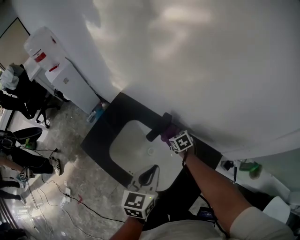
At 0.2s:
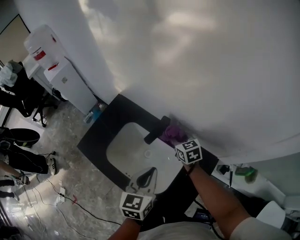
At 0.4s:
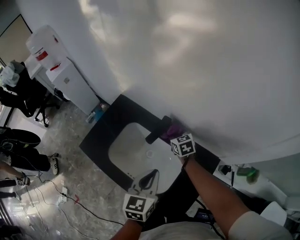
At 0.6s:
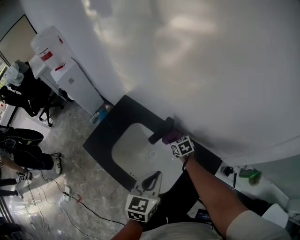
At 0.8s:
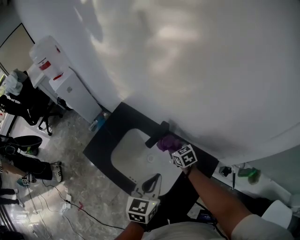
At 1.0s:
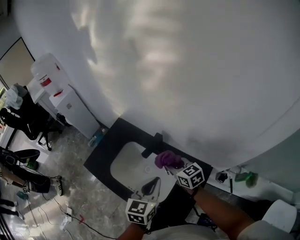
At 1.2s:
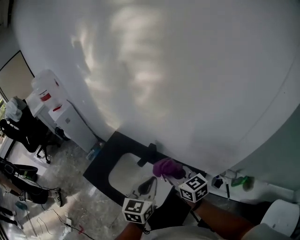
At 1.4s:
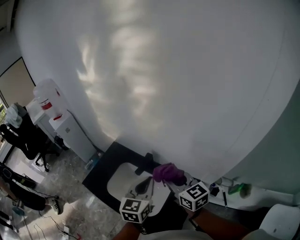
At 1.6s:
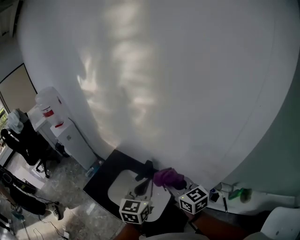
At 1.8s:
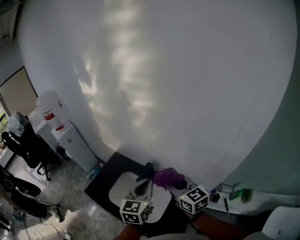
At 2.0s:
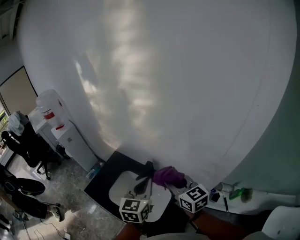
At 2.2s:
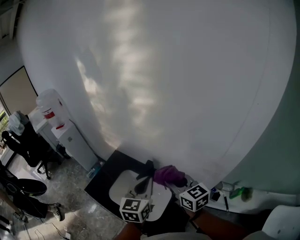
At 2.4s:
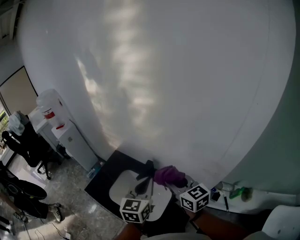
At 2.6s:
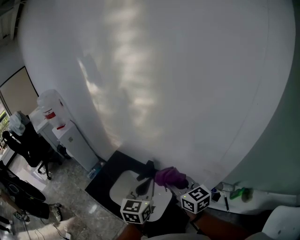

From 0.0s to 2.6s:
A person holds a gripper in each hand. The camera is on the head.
From 0.0s to 1.2s: The left gripper travels upward and to the right by about 10 cm; the right gripper swings up and down, about 30 cm each way, with 2 reversals, and tips its fingers upward by about 40 degrees.
From 1.2s to 2.6s: Both grippers travel together upward, about 10 cm.

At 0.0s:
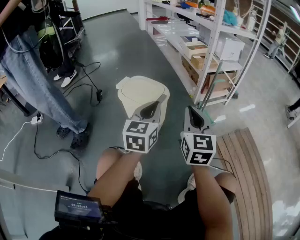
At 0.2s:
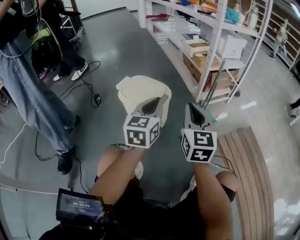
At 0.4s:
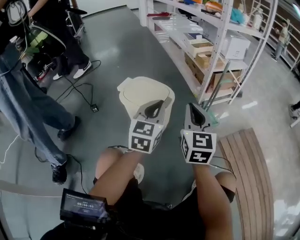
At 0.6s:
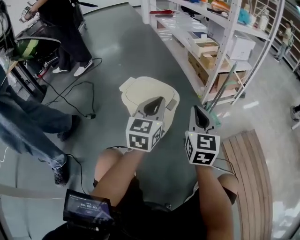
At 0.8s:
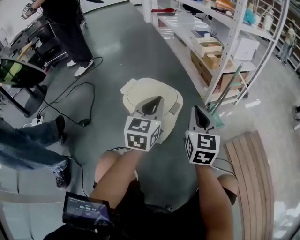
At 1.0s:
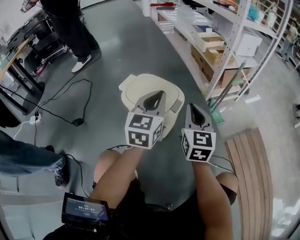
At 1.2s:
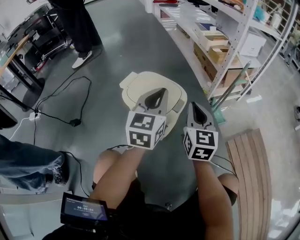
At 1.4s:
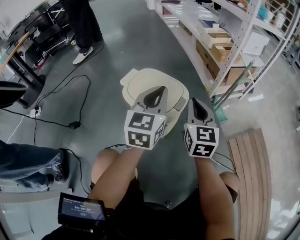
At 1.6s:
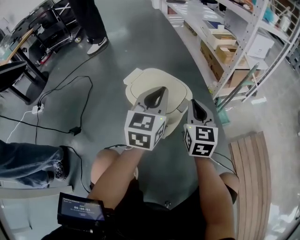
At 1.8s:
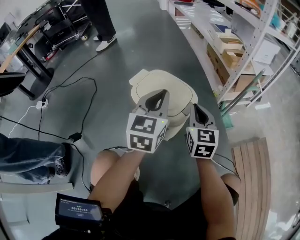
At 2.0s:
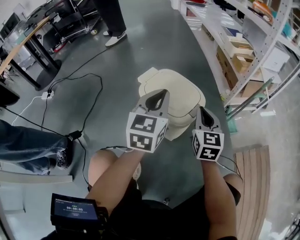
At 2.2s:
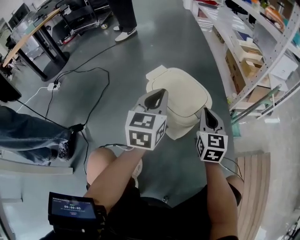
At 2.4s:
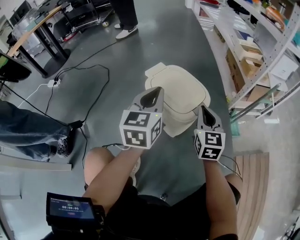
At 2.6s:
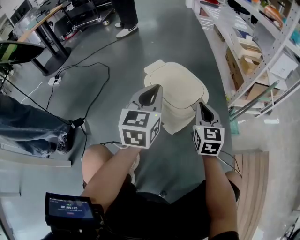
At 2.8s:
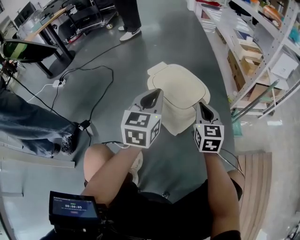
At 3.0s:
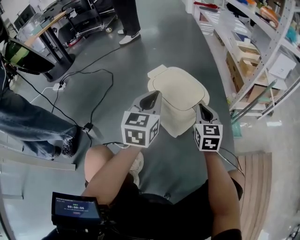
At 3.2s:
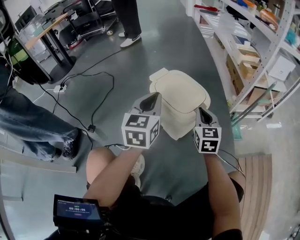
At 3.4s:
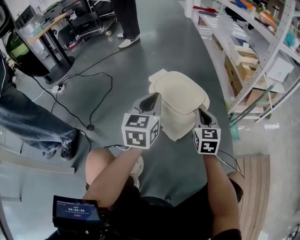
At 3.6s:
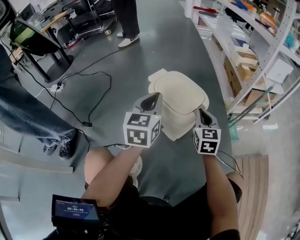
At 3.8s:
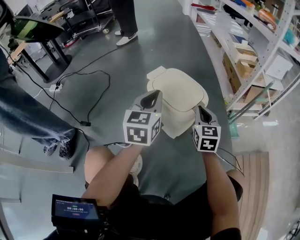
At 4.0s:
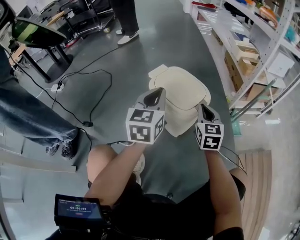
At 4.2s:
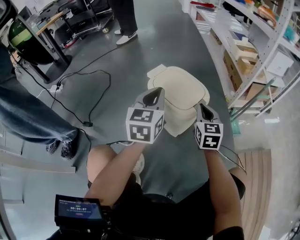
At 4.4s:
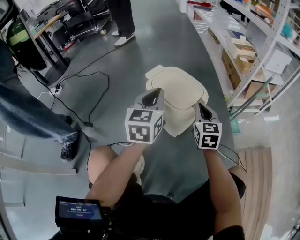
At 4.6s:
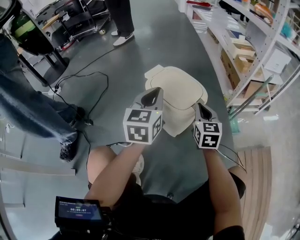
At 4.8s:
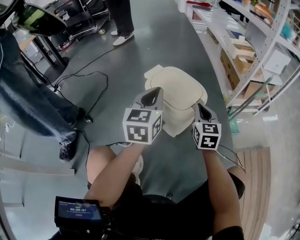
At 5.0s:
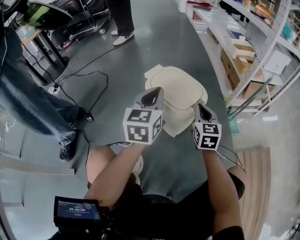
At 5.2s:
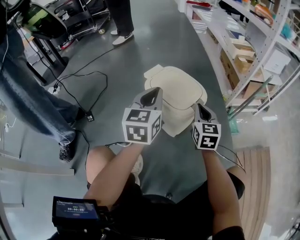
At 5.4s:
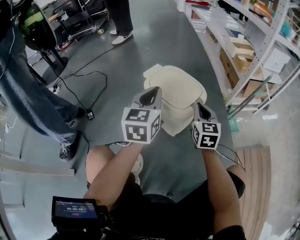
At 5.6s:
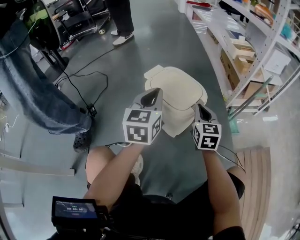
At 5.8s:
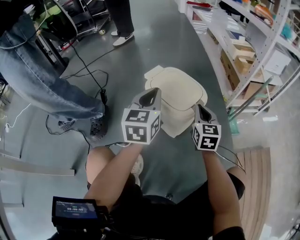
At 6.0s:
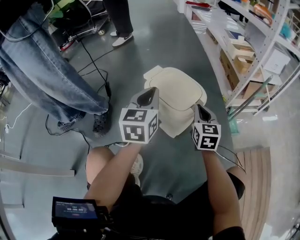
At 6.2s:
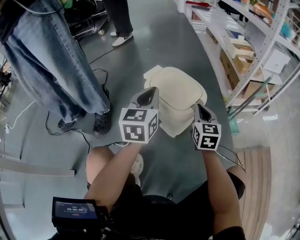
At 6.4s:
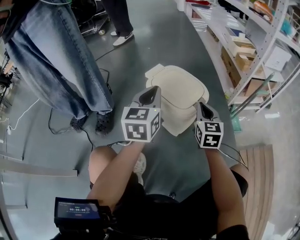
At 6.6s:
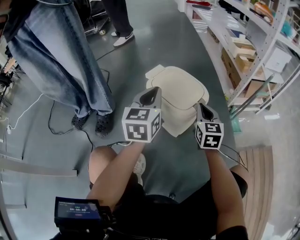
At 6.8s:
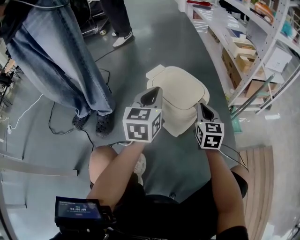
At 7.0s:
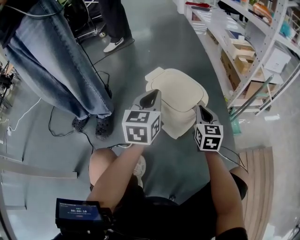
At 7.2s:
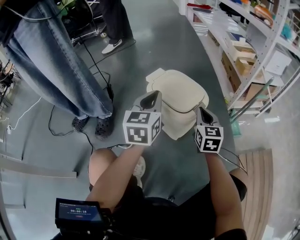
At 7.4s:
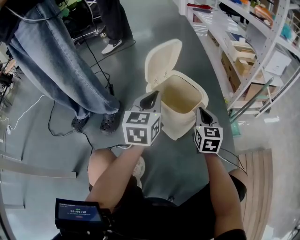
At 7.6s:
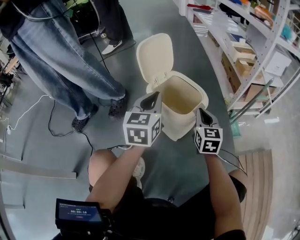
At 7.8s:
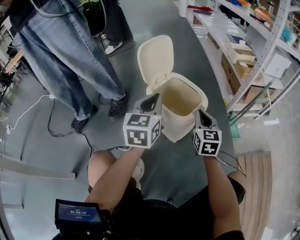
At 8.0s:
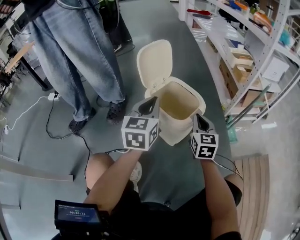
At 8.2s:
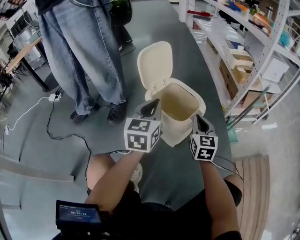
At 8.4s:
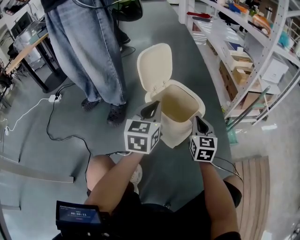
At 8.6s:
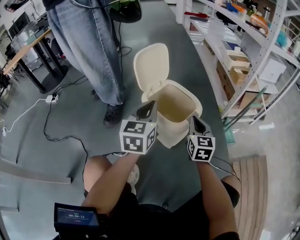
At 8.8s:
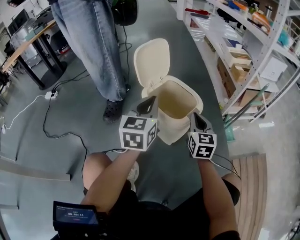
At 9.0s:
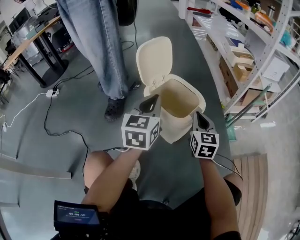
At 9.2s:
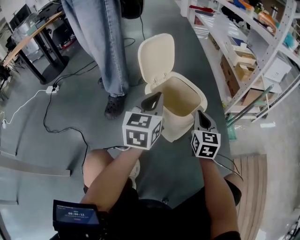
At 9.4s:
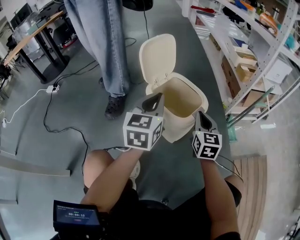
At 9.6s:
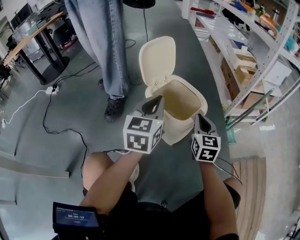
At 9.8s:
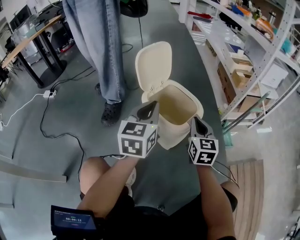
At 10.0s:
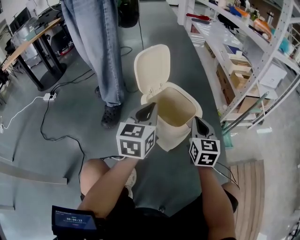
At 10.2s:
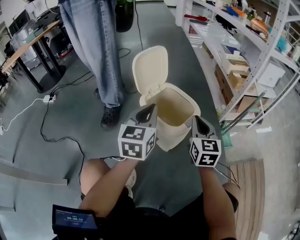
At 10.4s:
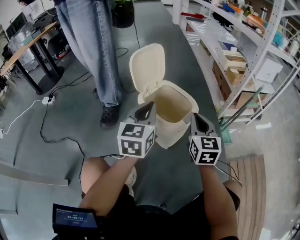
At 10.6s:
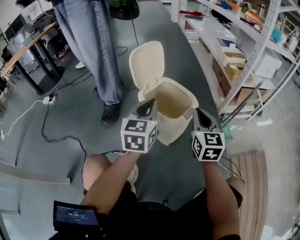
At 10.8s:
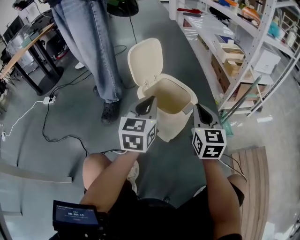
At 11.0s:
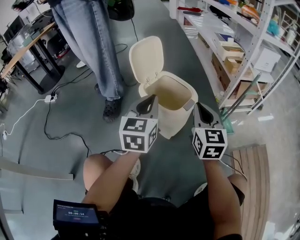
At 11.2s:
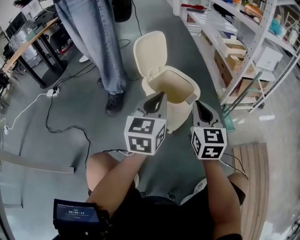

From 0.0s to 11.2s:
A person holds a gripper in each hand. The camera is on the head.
From 0.0s to 1.6s: The left gripper goes about 15 cm forward and to the left, while the right gripper travels forward, downward and to the left by roughly 20 cm.
From 1.6s to 3.2s: The left gripper heads to the left, covering approximately 10 cm. Meanwhile the right gripper heads downward, covering roughly 5 cm.
From 3.2s to 4.8s: The grippers make only small movements.
From 4.8s to 9.6s: The two grippers keep their place.
From 9.6s to 11.2s: The left gripper is displaced backward by roughly 10 cm, while the right gripper heads upward and backward, covering roughly 15 cm.

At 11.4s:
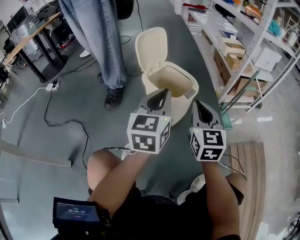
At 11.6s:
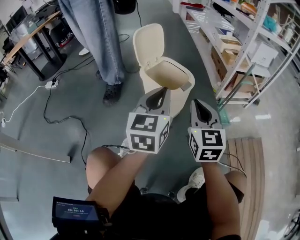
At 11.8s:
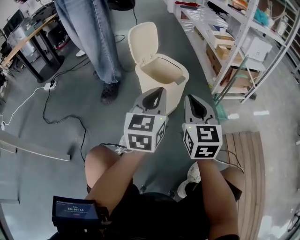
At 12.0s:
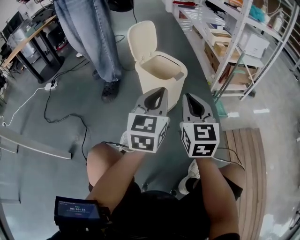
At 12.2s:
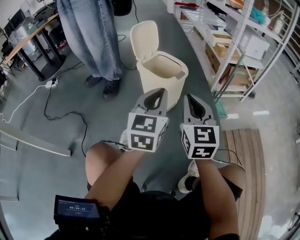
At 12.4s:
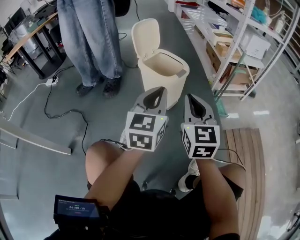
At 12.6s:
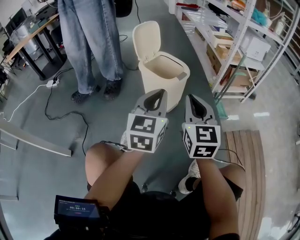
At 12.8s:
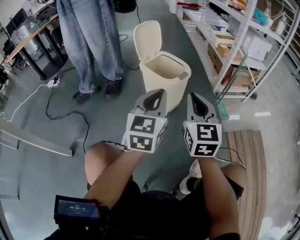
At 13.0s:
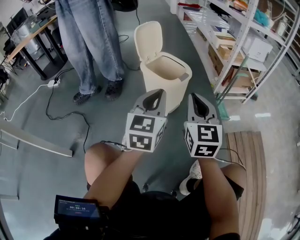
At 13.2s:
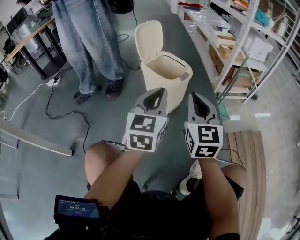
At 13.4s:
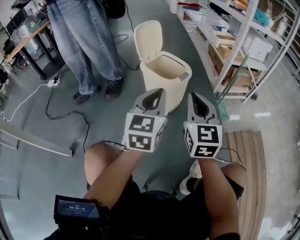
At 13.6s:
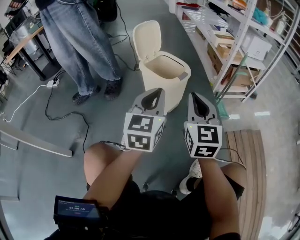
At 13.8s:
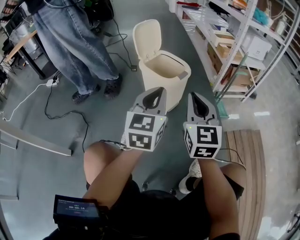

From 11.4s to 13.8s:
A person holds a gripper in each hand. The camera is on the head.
From 11.4s to 12.6s: Both grippers travel together backward, roughly 10 cm.
From 12.6s to 13.8s: The grippers stay close to where they were, moving slightly.

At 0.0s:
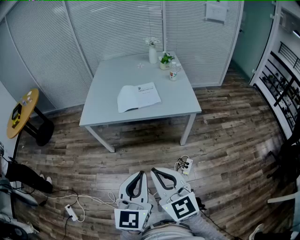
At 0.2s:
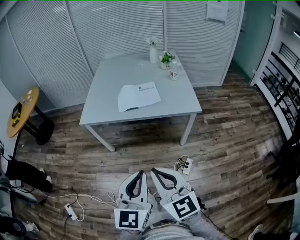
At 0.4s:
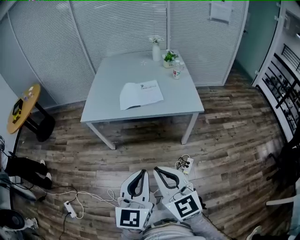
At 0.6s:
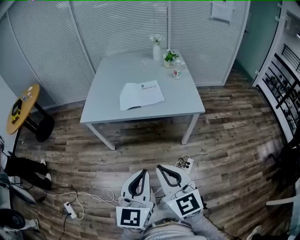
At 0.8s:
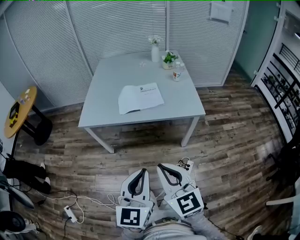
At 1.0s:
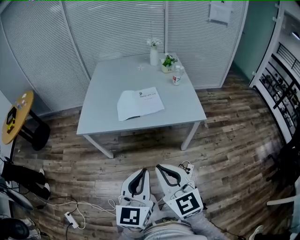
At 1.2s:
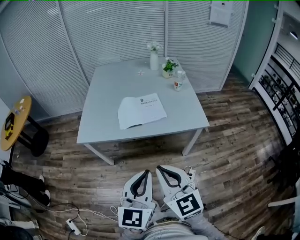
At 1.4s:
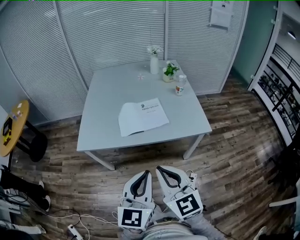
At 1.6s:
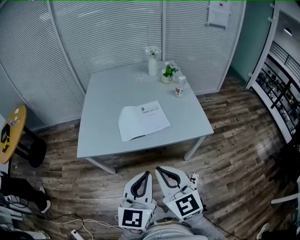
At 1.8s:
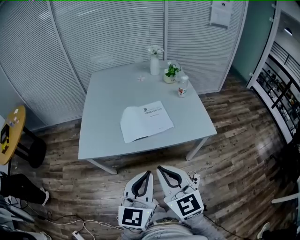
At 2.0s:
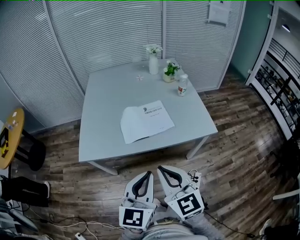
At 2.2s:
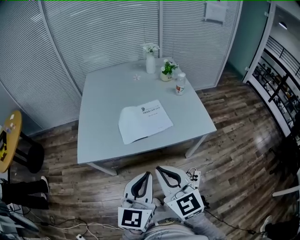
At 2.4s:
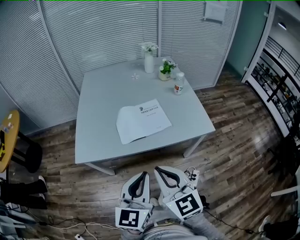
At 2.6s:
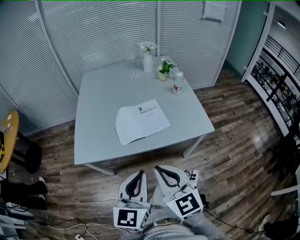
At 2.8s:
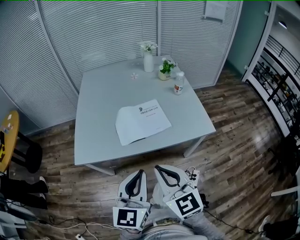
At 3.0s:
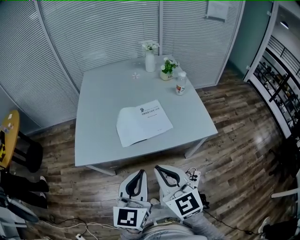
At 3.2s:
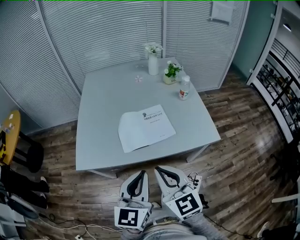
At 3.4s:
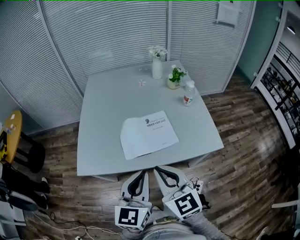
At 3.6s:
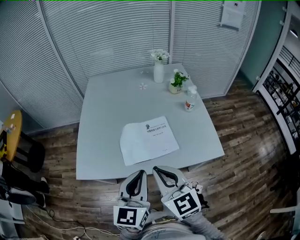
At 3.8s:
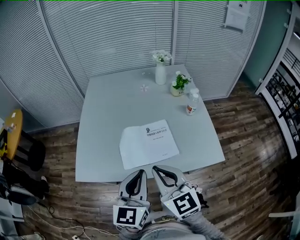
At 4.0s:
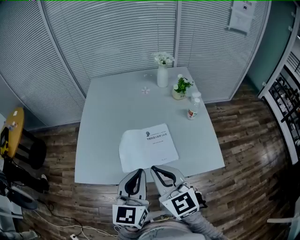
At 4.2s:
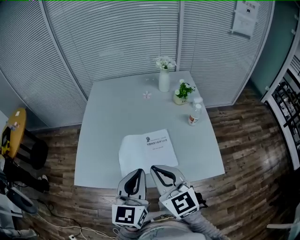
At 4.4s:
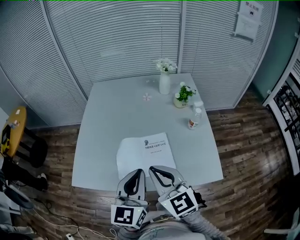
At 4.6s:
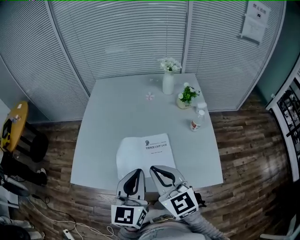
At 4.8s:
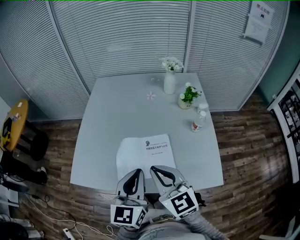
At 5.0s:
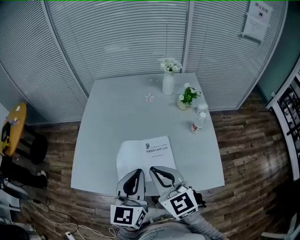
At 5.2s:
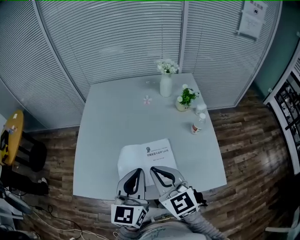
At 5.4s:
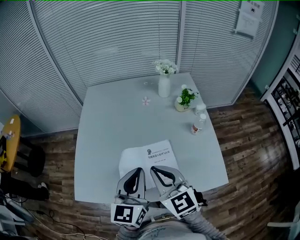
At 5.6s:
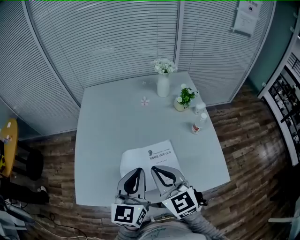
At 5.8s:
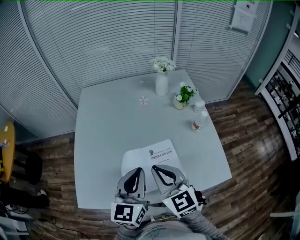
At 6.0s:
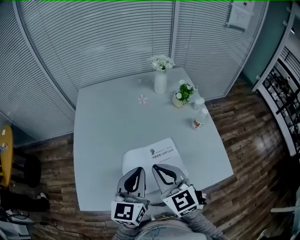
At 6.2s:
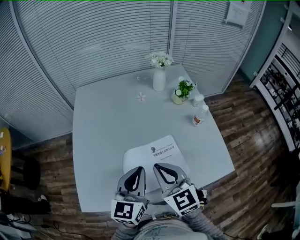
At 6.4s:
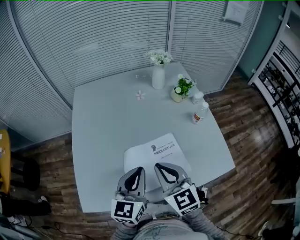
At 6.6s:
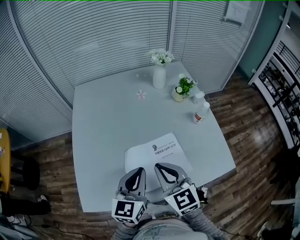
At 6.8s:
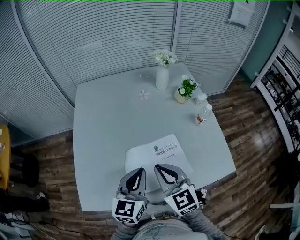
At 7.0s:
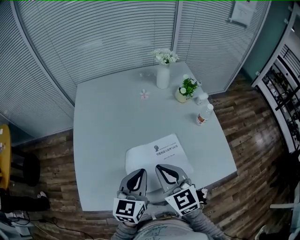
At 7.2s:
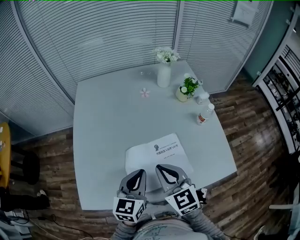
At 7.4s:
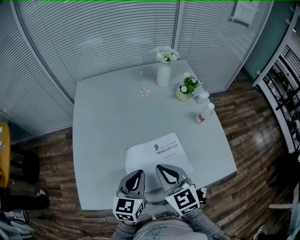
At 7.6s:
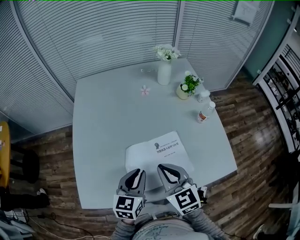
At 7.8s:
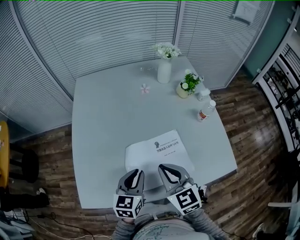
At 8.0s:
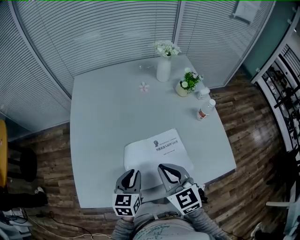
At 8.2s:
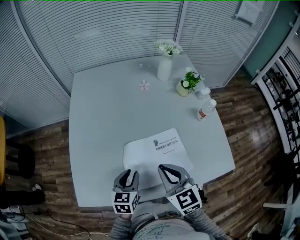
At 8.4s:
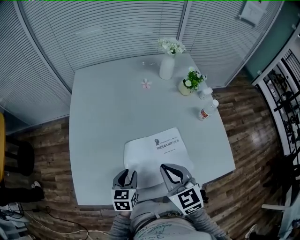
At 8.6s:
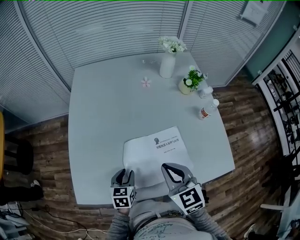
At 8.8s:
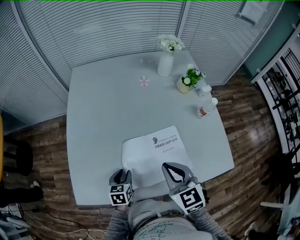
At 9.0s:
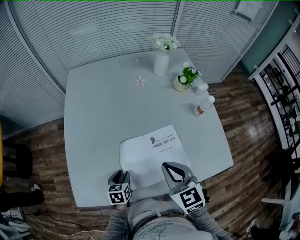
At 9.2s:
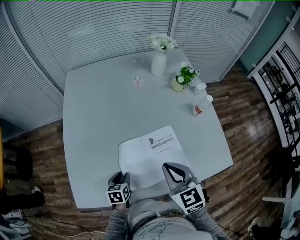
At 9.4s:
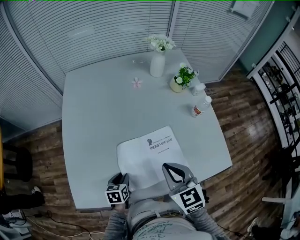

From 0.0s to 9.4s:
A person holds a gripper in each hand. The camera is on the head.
From 0.0s to 1.6s: Both grippers move forward, roughly 25 cm.
From 1.6s to 3.2s: The two grippers go about 10 cm forward.
From 3.2s to 4.8s: The two grippers go roughly 20 cm forward.
From 4.8s to 6.2s: Both grippers move forward and to the left, approximately 10 cm.
From 6.2s to 7.8s: The left gripper shifts approximately 10 cm downward.
From 7.8s to 9.4s: The left gripper shifts roughly 15 cm downward, and turns by about 30 degrees.
